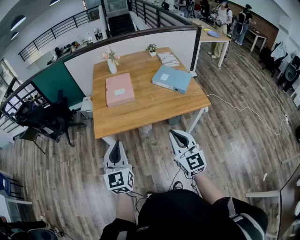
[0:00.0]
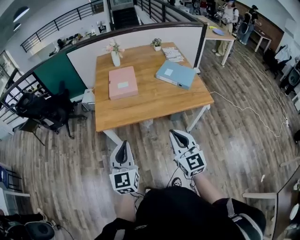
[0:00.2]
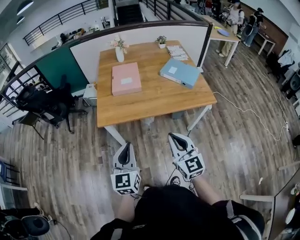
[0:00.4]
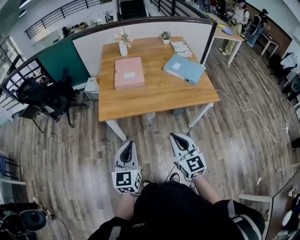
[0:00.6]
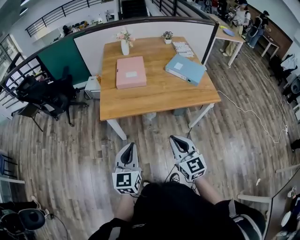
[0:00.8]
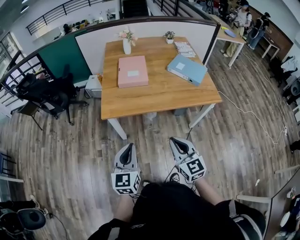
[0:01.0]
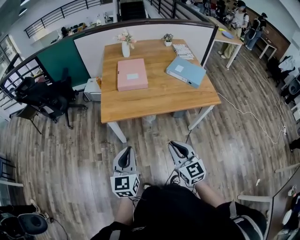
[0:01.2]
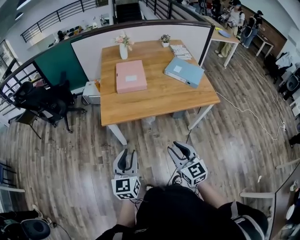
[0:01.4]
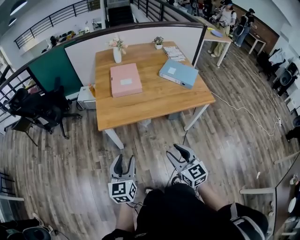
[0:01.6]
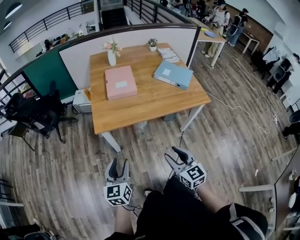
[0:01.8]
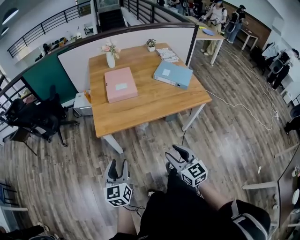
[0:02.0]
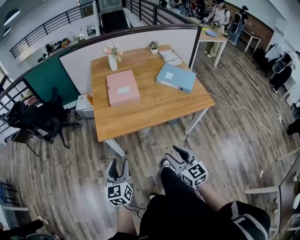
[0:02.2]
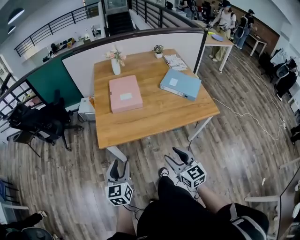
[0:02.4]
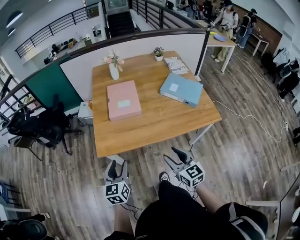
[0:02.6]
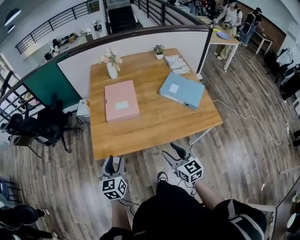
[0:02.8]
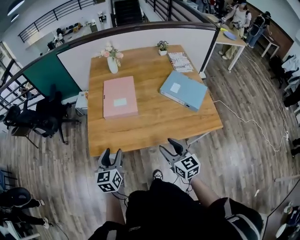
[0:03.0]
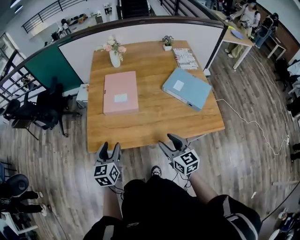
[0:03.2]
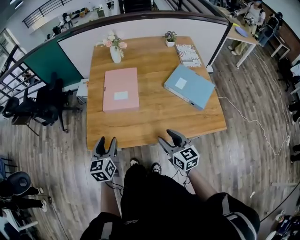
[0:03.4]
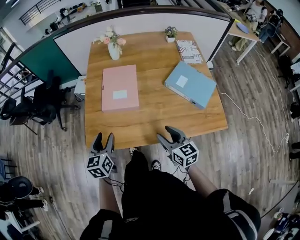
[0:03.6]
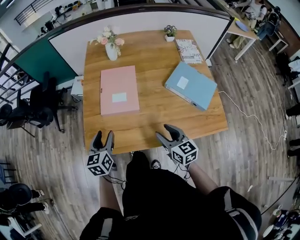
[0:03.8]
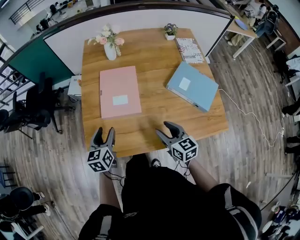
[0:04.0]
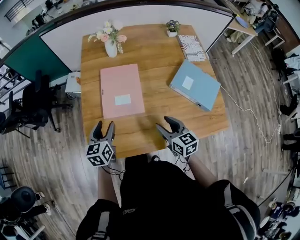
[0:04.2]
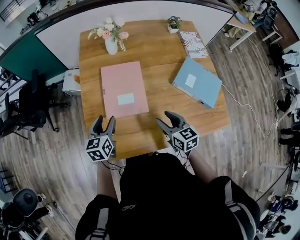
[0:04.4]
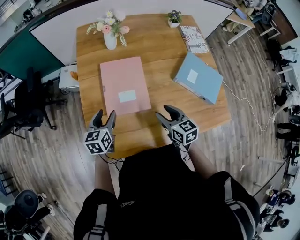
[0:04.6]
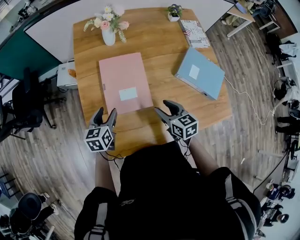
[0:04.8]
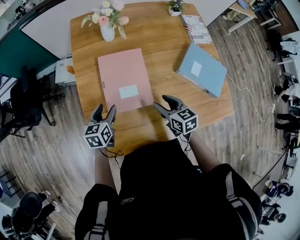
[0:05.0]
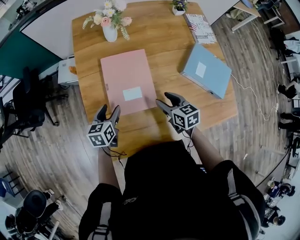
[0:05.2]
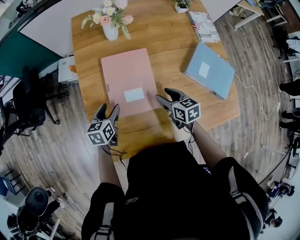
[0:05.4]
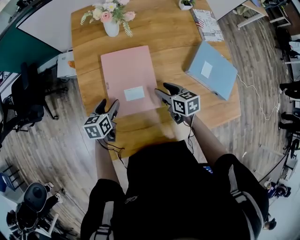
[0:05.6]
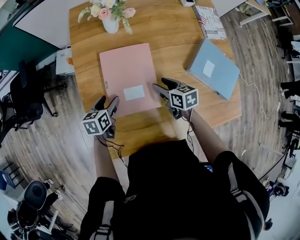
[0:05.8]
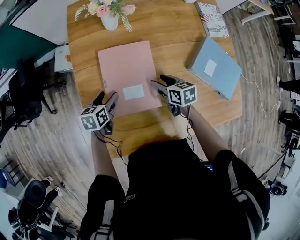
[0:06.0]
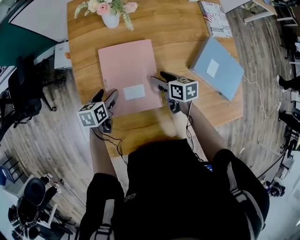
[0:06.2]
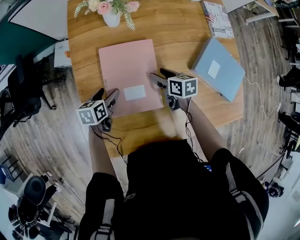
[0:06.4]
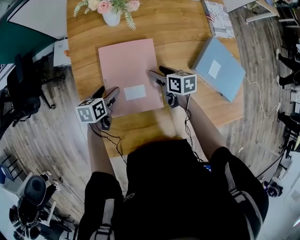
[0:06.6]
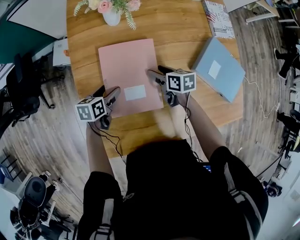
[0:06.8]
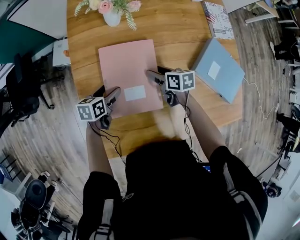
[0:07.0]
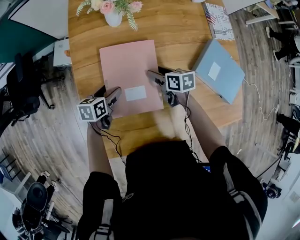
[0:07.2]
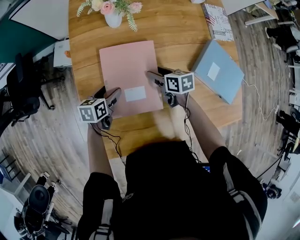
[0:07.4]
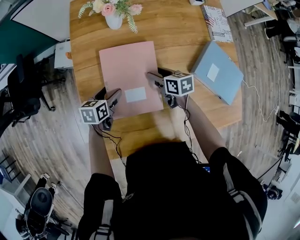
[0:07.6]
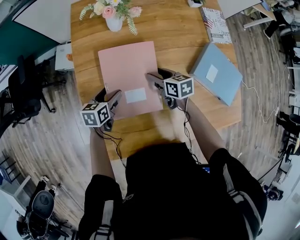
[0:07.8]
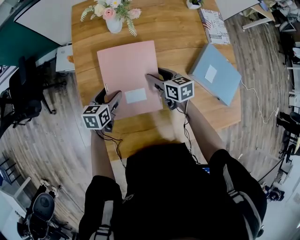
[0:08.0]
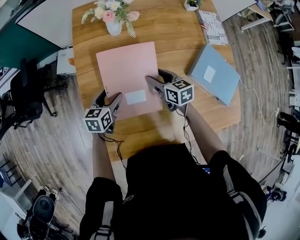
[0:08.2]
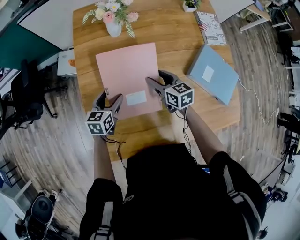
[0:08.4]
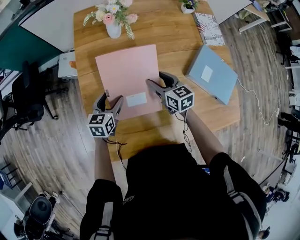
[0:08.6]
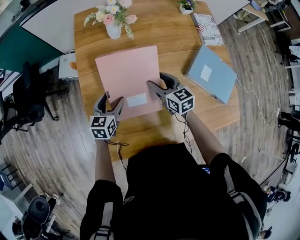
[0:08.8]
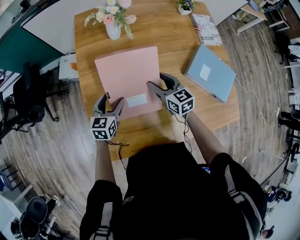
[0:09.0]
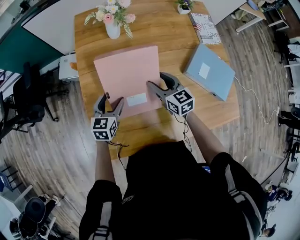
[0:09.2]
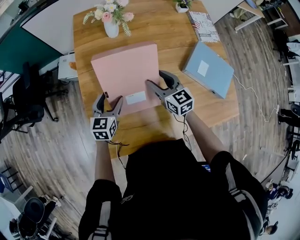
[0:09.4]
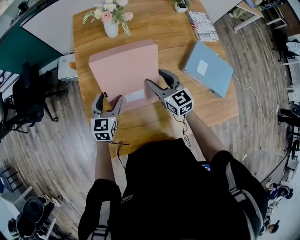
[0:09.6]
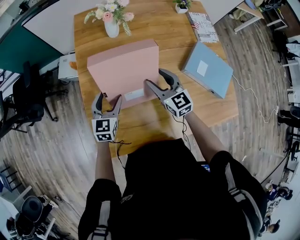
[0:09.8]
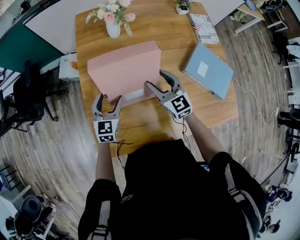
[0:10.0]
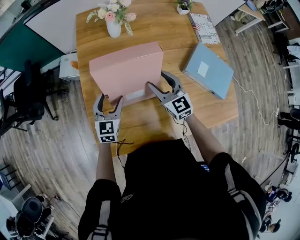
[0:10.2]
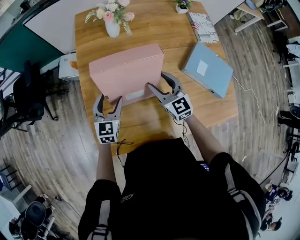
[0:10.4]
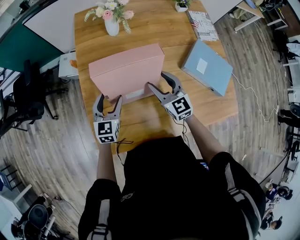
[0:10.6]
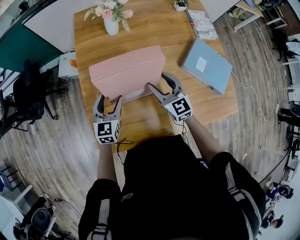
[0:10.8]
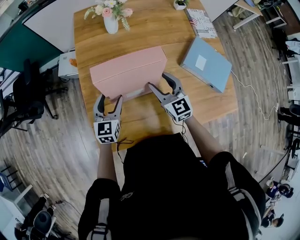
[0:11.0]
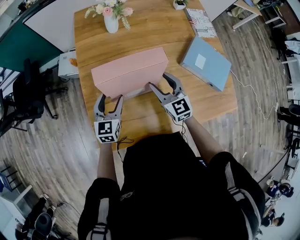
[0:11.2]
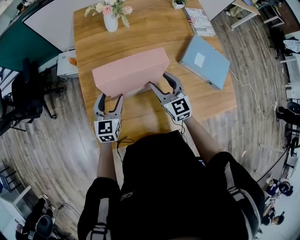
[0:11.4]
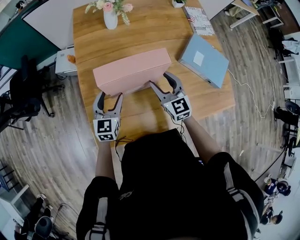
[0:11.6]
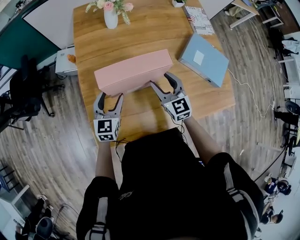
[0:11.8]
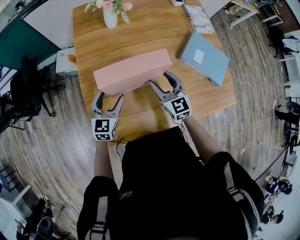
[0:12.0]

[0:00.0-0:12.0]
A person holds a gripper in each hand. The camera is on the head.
0:00.0 to 0:01.6: The left gripper goes approximately 15 cm downward and to the left, and opens its fingers; the right gripper moves to the left and downward, roughly 15 cm, and opens up.
0:01.6 to 0:03.0: The left gripper goes about 25 cm forward, while the right gripper travels forward and to the right by approximately 30 cm.
0:03.0 to 0:04.4: Both grippers move forward, about 25 cm.
0:04.4 to 0:06.0: The left gripper shifts about 15 cm downward and forward, and turns by approximately 20 degrees. Meanwhile the right gripper heads forward and downward, covering about 20 cm, and rotates roughly 20 degrees.
0:06.0 to 0:07.6: The right gripper shifts roughly 5 cm forward.
0:07.6 to 0:09.0: The grippers both shift upward by approximately 10 cm. The left gripper changes its angle by some 30 degrees. Meanwhile the right gripper rotates approximately 30 degrees.
0:09.0 to 0:10.4: The right gripper shifts by approximately 5 cm, and rotates roughly 20 degrees.
0:10.4 to 0:12.0: The grippers both shift backward by some 5 cm.

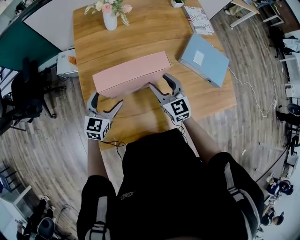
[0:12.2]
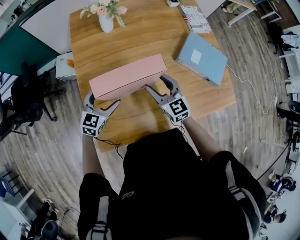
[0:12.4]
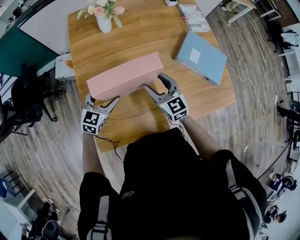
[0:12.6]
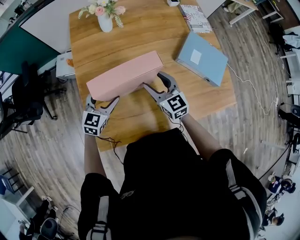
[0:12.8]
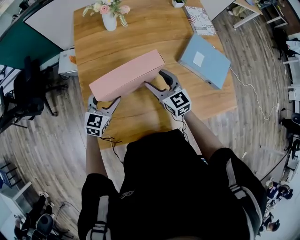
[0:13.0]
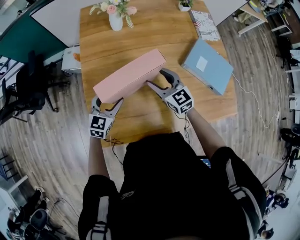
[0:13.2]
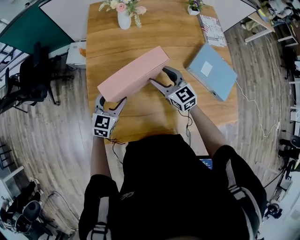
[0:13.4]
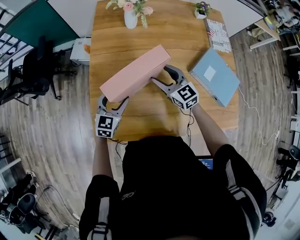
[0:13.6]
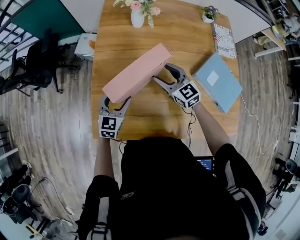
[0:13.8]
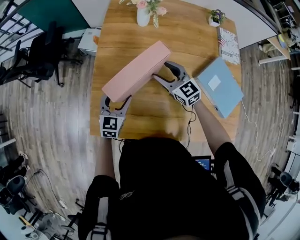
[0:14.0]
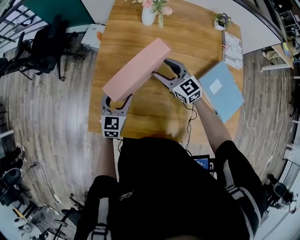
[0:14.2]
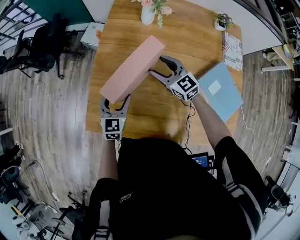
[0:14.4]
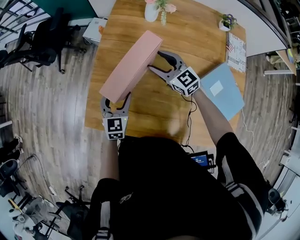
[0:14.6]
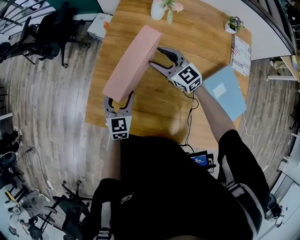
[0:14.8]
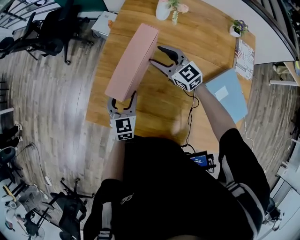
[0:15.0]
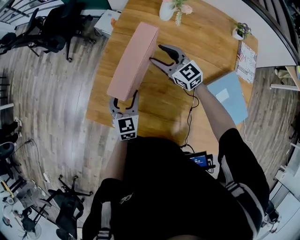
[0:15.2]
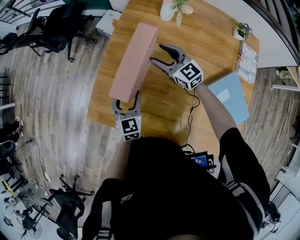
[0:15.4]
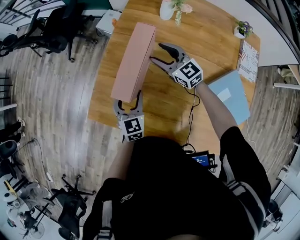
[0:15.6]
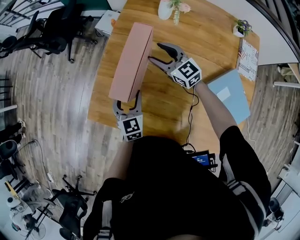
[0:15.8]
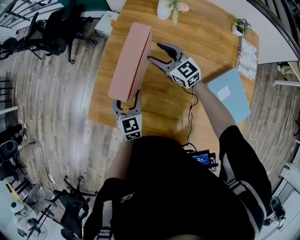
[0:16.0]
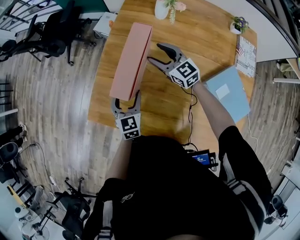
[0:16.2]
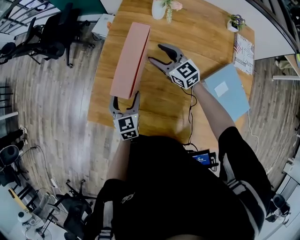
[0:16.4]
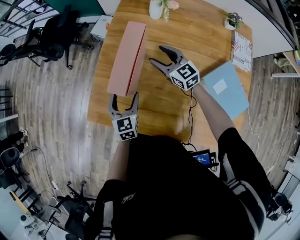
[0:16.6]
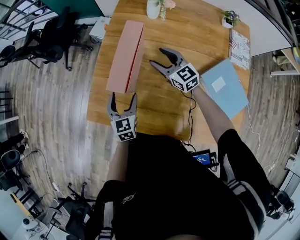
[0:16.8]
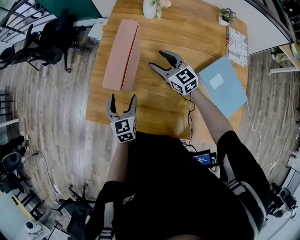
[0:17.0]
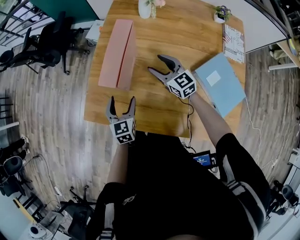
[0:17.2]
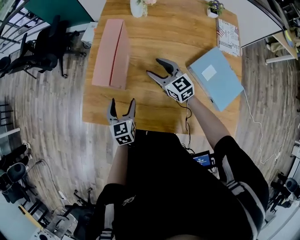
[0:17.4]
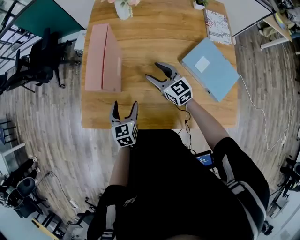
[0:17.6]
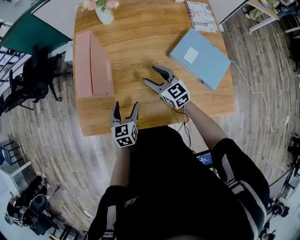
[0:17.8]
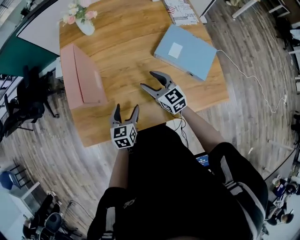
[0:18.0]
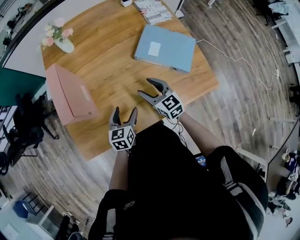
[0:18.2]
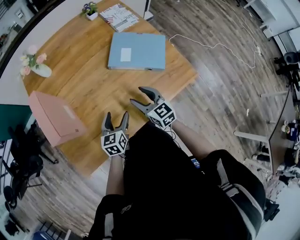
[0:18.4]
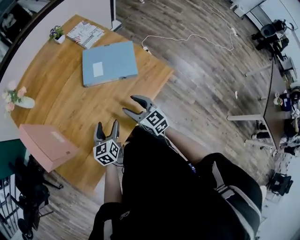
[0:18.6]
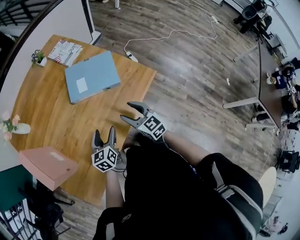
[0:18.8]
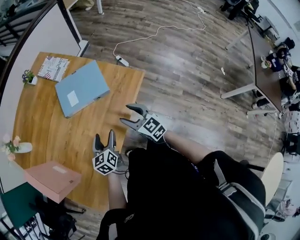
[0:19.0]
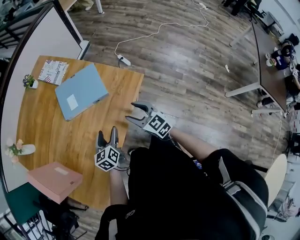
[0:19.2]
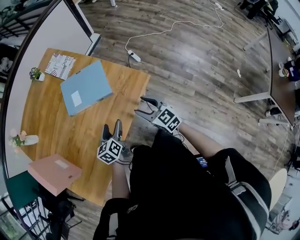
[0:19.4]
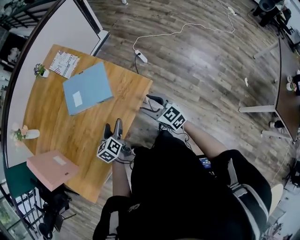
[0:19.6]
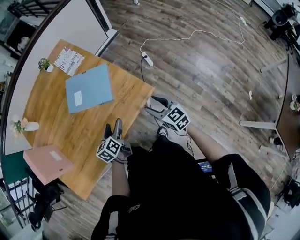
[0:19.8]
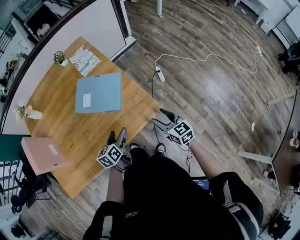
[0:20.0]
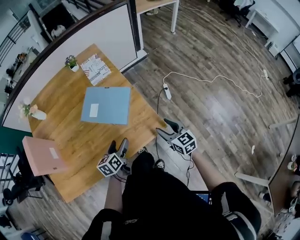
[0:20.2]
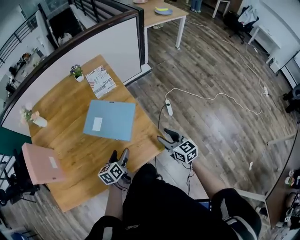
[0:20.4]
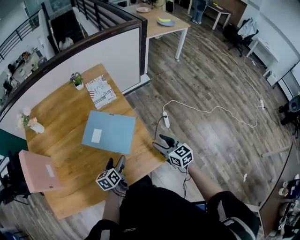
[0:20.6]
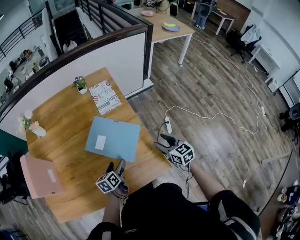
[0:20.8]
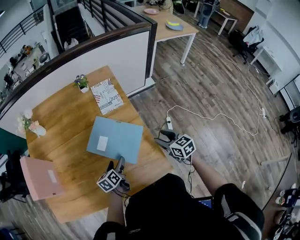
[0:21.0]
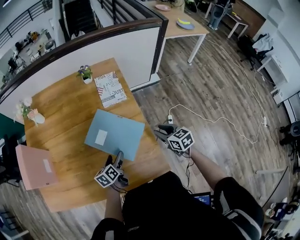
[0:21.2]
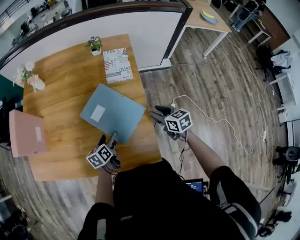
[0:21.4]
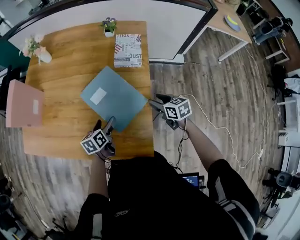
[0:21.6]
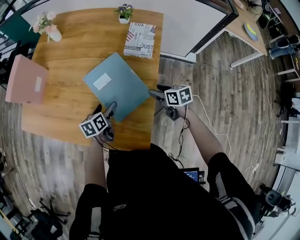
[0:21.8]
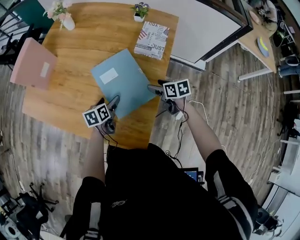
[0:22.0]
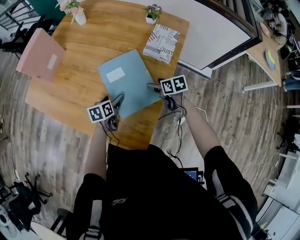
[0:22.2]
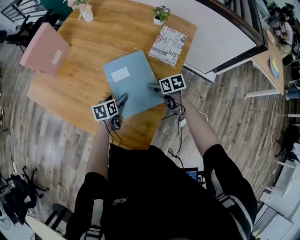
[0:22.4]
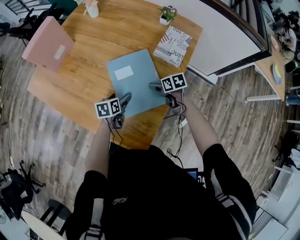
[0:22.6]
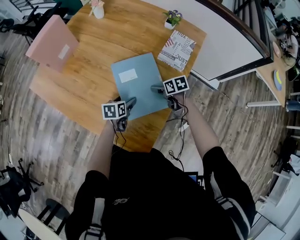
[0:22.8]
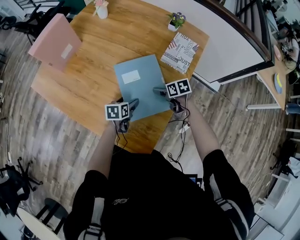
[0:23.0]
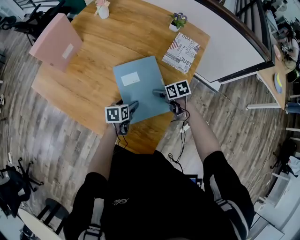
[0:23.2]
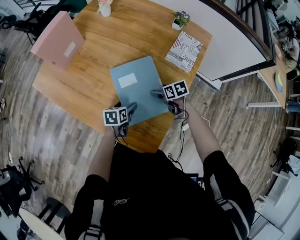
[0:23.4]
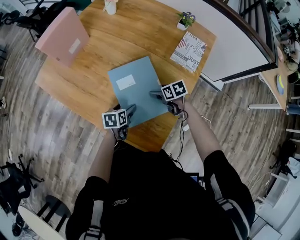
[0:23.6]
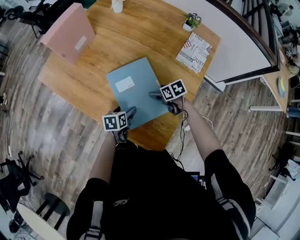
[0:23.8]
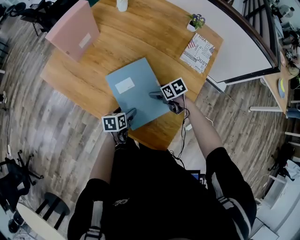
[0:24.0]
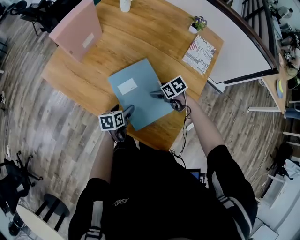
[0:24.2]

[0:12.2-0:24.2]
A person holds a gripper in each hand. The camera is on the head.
0:12.2 to 0:13.8: The right gripper ends up roughly 5 cm from where it was, and changes its angle by roughly 30 degrees.
0:13.8 to 0:15.2: The right gripper ends up some 10 cm from where it was, and turns by some 20 degrees; the left gripper turns by some 30 degrees.
0:15.2 to 0:16.6: The grippers make only small movements.
0:16.6 to 0:18.2: The left gripper ends up roughly 20 cm from where it was, and swivels roughly 40 degrees. The right gripper moves approximately 30 cm, and changes its angle by some 40 degrees.
0:18.2 to 0:19.8: The right gripper changes place by approximately 50 cm, and turns by approximately 20 degrees. The left gripper changes place by about 35 cm.
0:19.8 to 0:21.2: The right gripper travels forward by roughly 30 cm, and turns by roughly 30 degrees. The left gripper shifts some 20 cm forward, and changes its angle by roughly 30 degrees.
0:21.2 to 0:22.6: The right gripper shifts by some 25 cm, rotates roughly 50 degrees, and opens its fingers; the left gripper is displaced downward by about 5 cm, and turns by about 30 degrees.
0:22.6 to 0:24.2: The two grippers go approximately 15 cm to the left. The right gripper swivels roughly 20 degrees.
